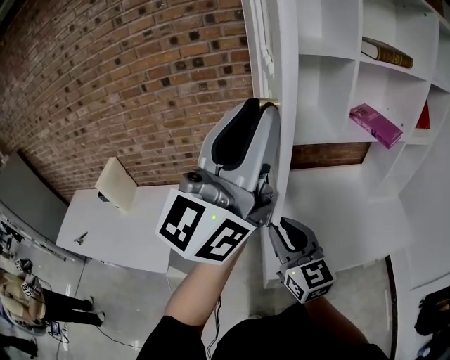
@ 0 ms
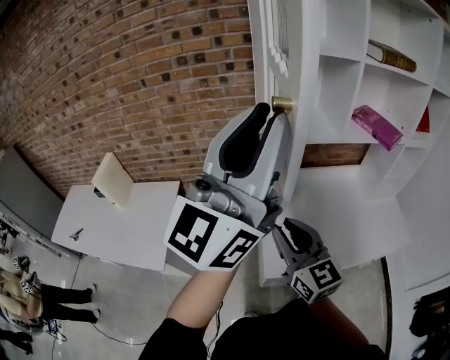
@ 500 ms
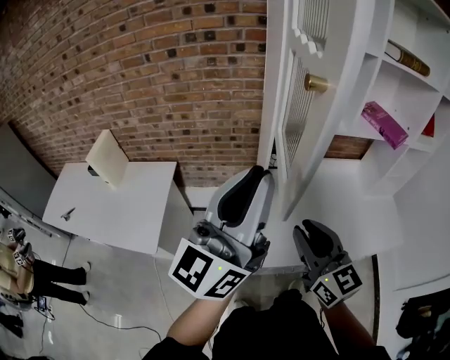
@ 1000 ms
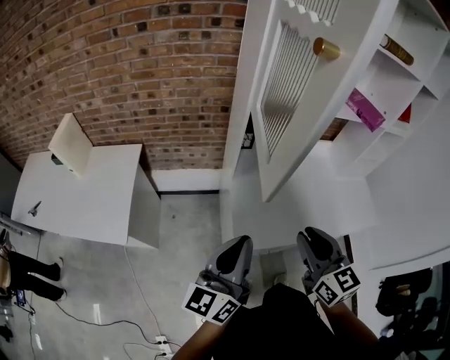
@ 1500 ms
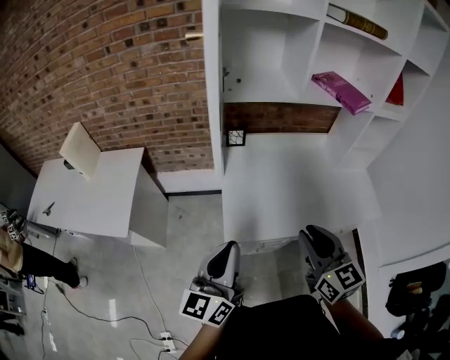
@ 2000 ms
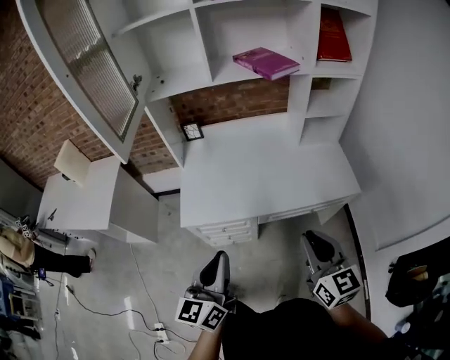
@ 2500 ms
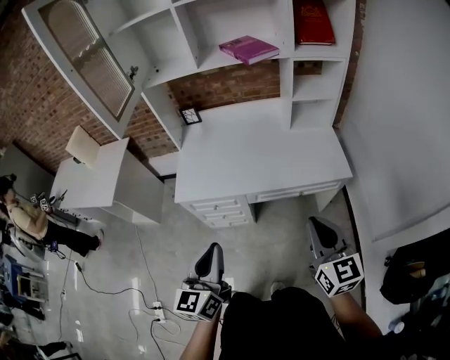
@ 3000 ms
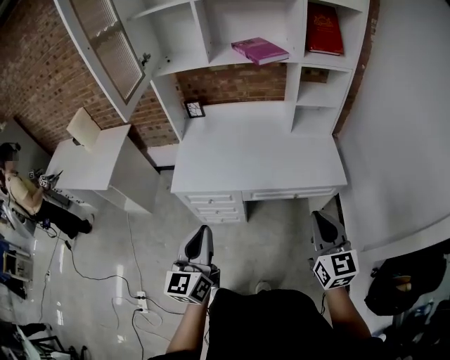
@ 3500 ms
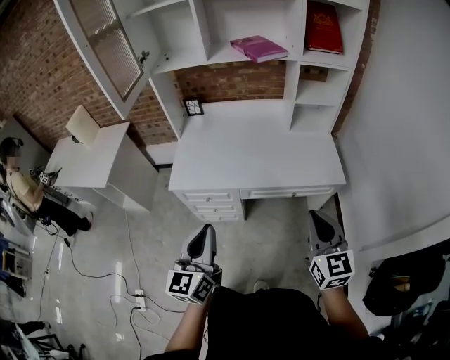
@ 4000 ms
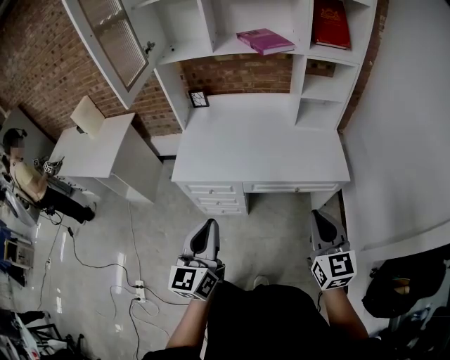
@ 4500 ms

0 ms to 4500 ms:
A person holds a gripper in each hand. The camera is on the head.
0 ms to 2000 ms: The left gripper is displaced downward and backward by about 40 cm, and turns by roughly 40 degrees. Meanwhile the right gripper travels to the right and backward by some 25 cm.
2000 ms to 4500 ms: The two grippers travel together, to the right and backward, about 40 cm.

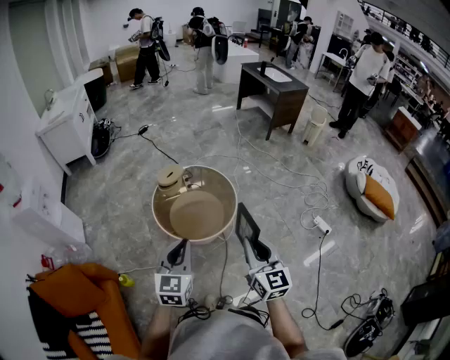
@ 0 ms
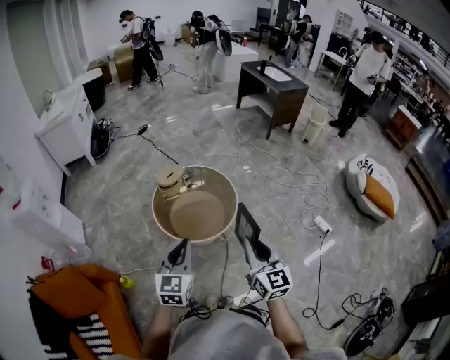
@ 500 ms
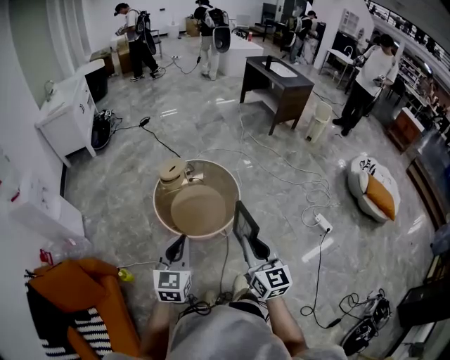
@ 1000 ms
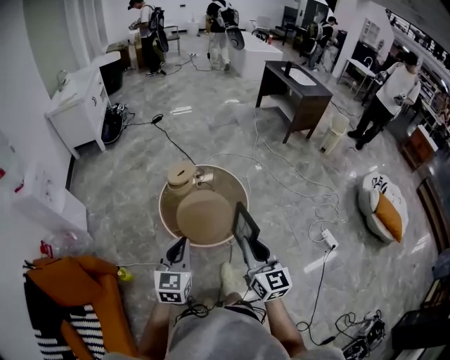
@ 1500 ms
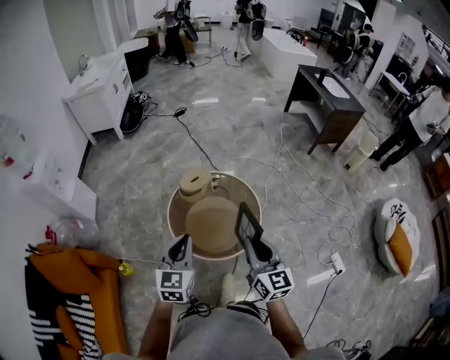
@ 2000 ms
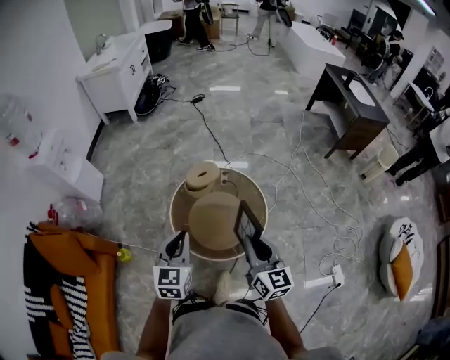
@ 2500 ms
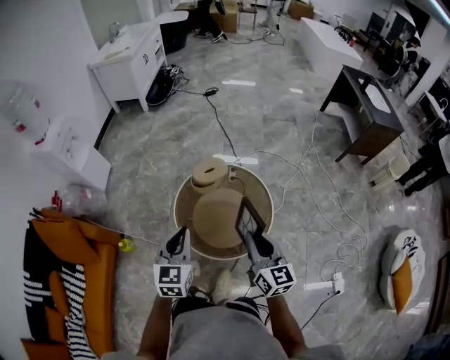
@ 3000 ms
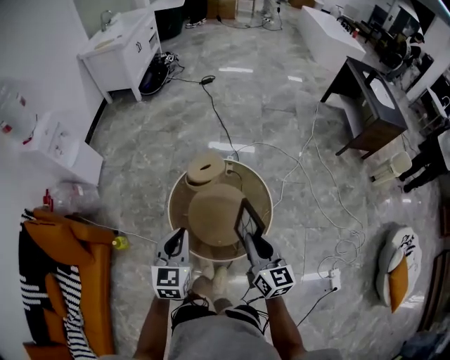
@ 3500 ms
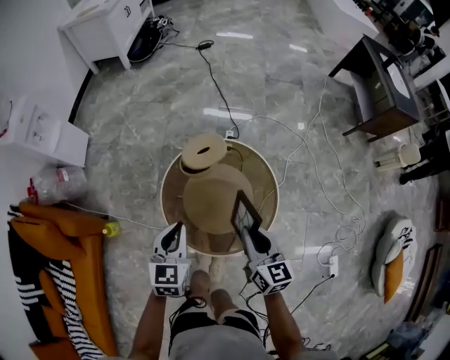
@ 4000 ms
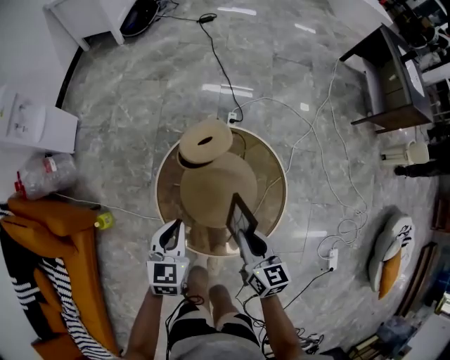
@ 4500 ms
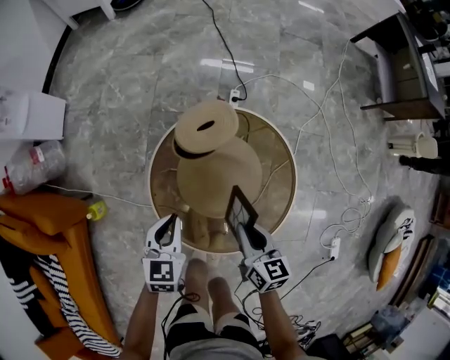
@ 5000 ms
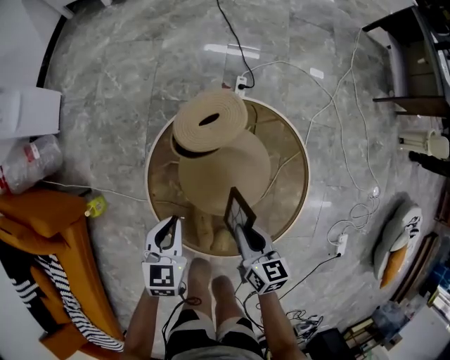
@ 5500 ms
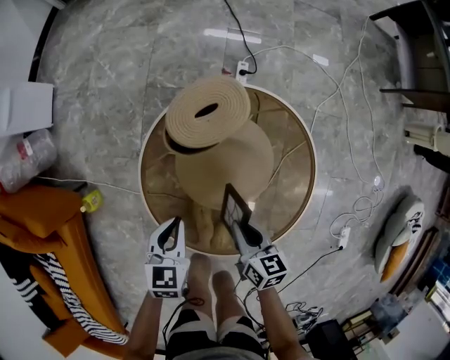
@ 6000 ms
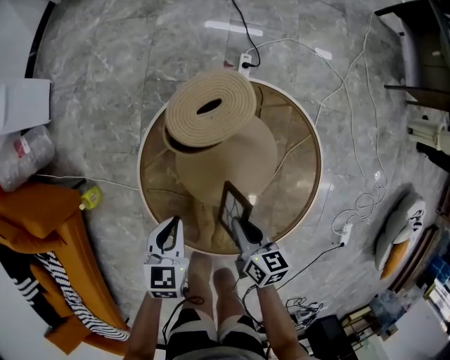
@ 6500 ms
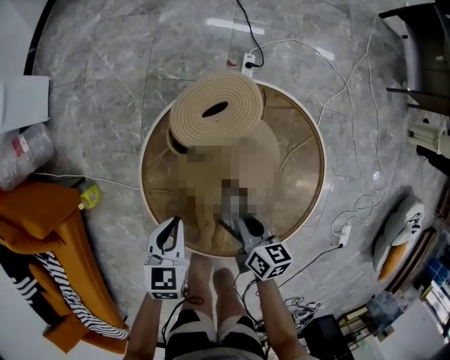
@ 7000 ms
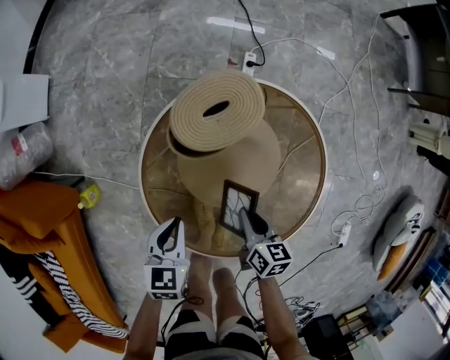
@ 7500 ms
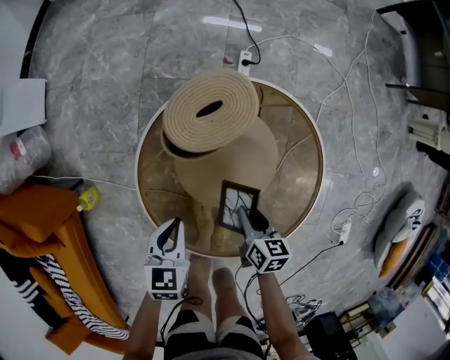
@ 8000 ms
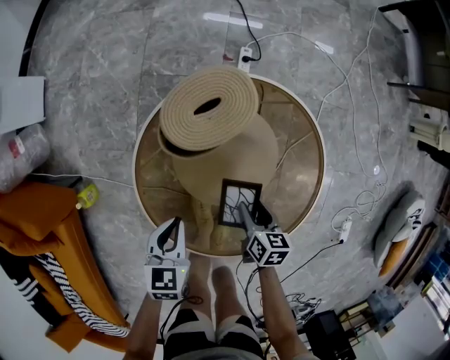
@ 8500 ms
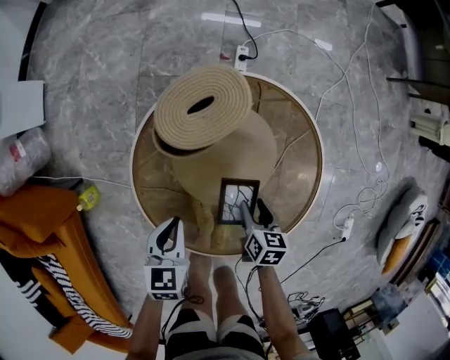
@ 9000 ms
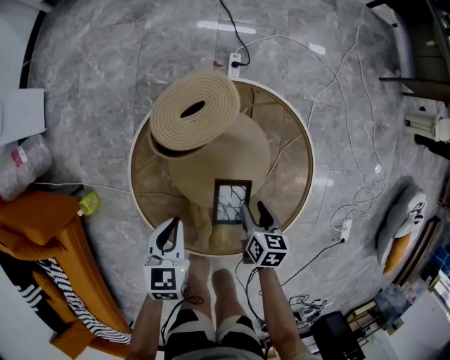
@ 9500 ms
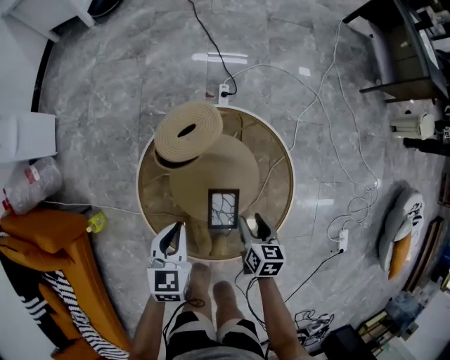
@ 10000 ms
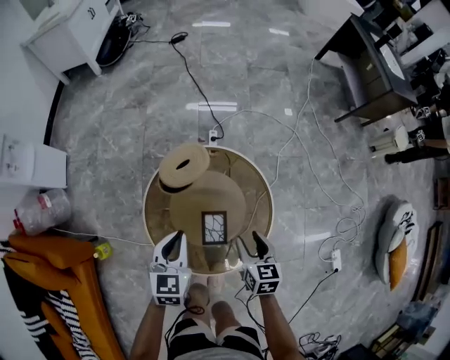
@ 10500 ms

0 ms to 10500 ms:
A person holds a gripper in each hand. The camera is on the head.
0 ms to 2000 ms: The grippers both shift forward by approximately 25 cm.
2000 ms to 4000 ms: The two grippers go approximately 30 cm forward and downward. The right gripper turns by some 20 degrees.
4000 ms to 6500 ms: The grippers both shift downward by roughly 35 cm. The right gripper swivels about 30 degrees; the left gripper turns by some 20 degrees.
6500 ms to 8500 ms: The right gripper moves downward and to the right, approximately 10 cm, and opens its fingers.
8500 ms to 10500 ms: The grippers both shift upward by roughly 25 cm. The left gripper turns by some 20 degrees; the right gripper turns by roughly 20 degrees.

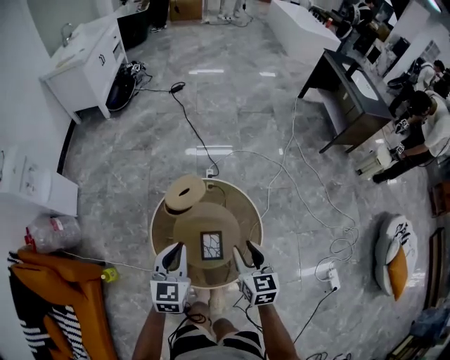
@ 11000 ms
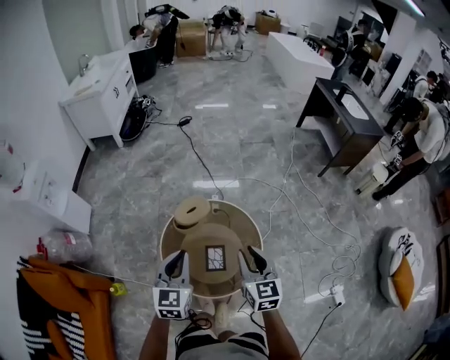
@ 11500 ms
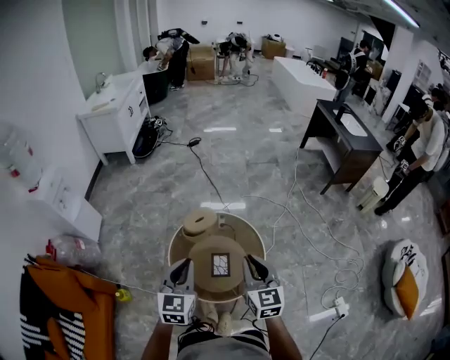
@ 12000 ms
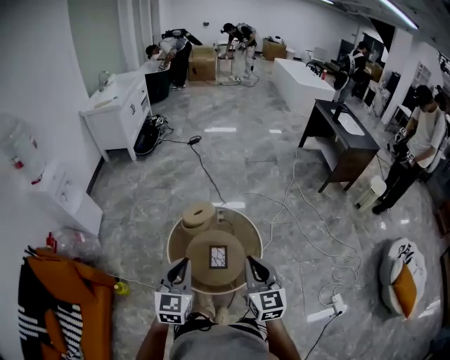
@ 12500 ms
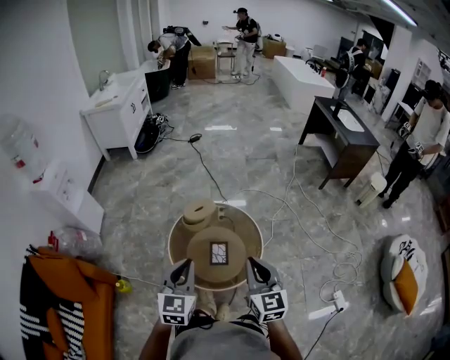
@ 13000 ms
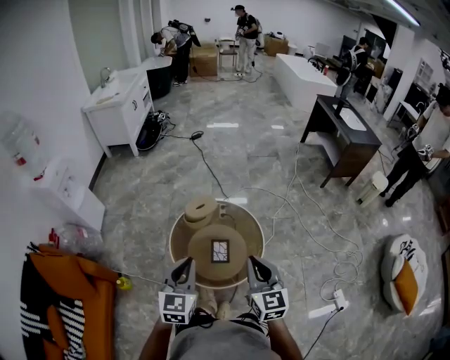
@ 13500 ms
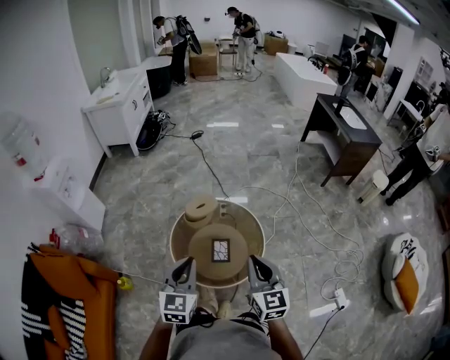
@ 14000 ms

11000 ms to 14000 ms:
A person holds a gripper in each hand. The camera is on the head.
11000 ms to 12500 ms: The left gripper moves backward and upward, about 25 cm. Meanwhile the right gripper heads upward and backward, covering some 30 cm, turns by about 20 degrees, and closes.
12500 ms to 14000 ms: The grippers move only a little.

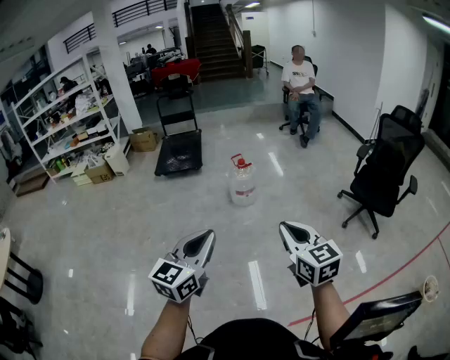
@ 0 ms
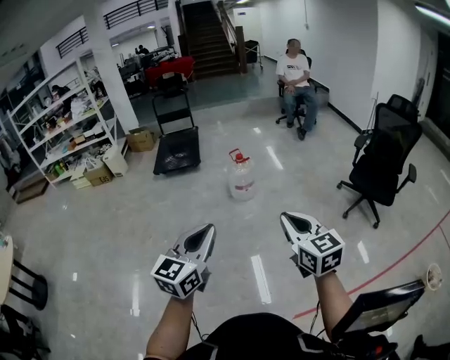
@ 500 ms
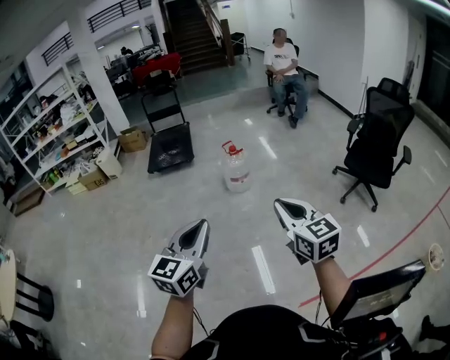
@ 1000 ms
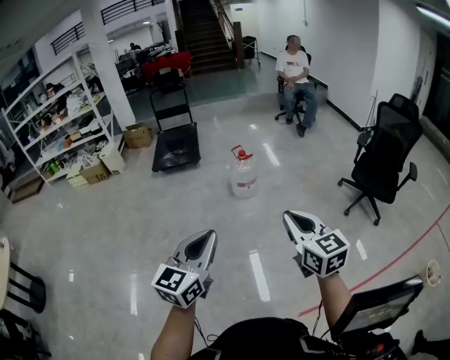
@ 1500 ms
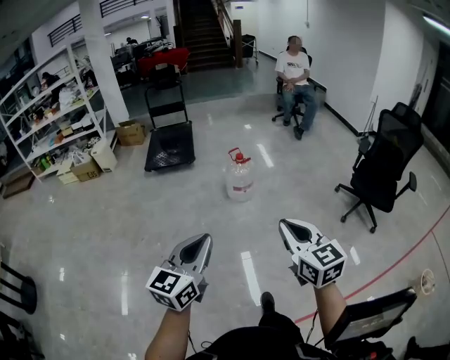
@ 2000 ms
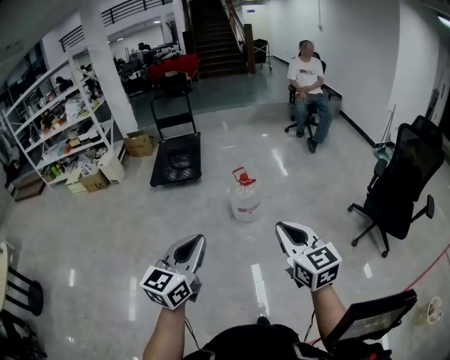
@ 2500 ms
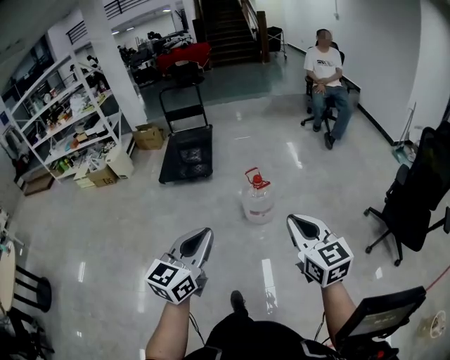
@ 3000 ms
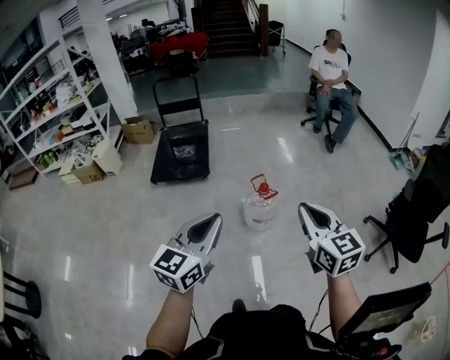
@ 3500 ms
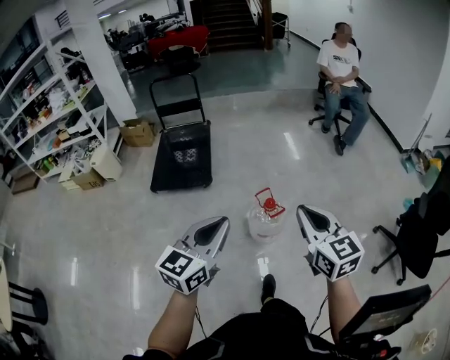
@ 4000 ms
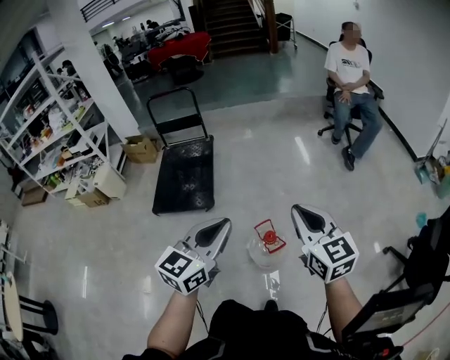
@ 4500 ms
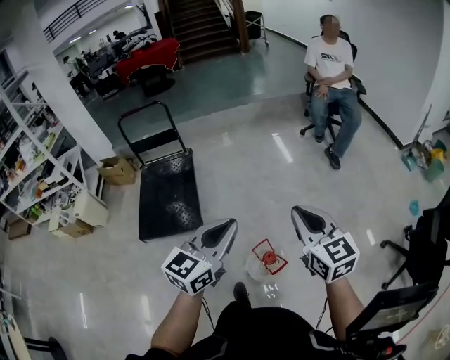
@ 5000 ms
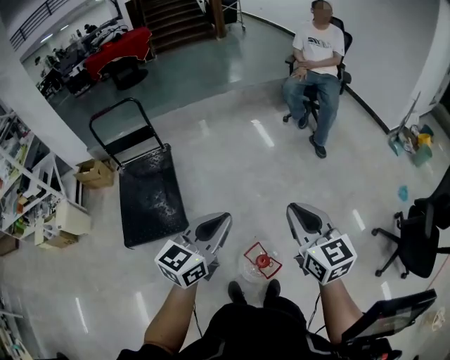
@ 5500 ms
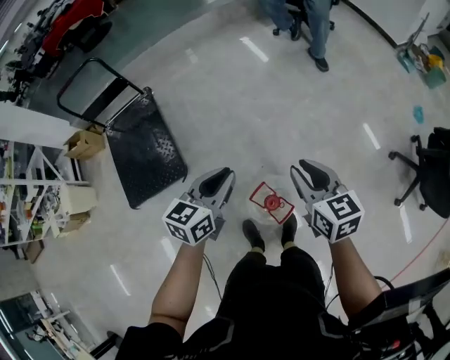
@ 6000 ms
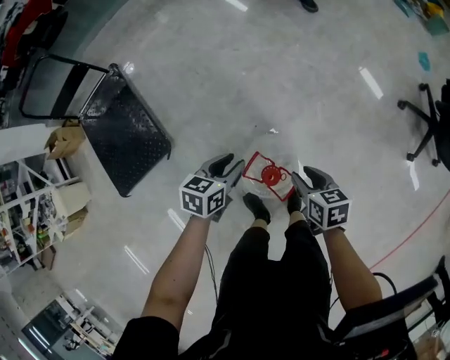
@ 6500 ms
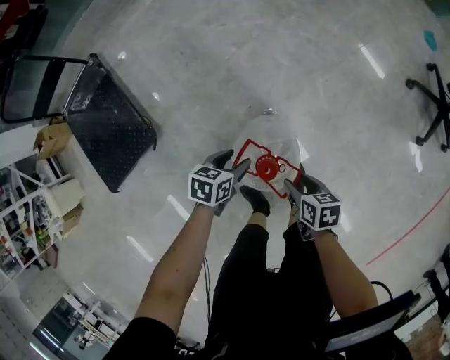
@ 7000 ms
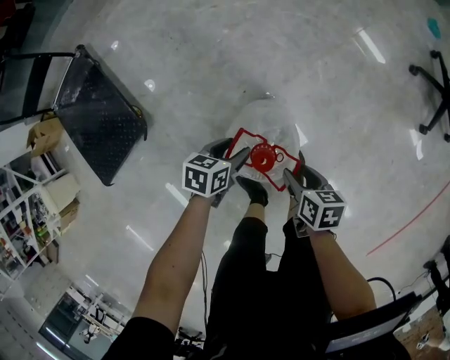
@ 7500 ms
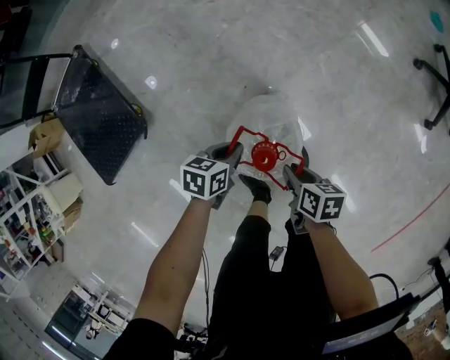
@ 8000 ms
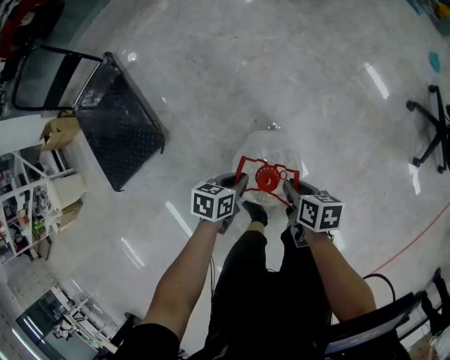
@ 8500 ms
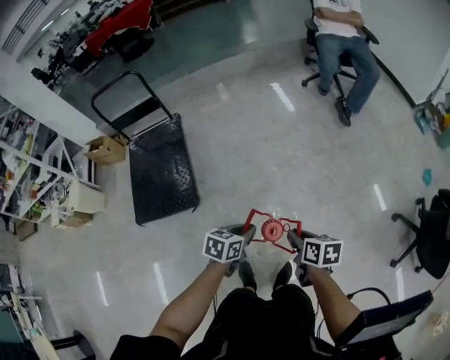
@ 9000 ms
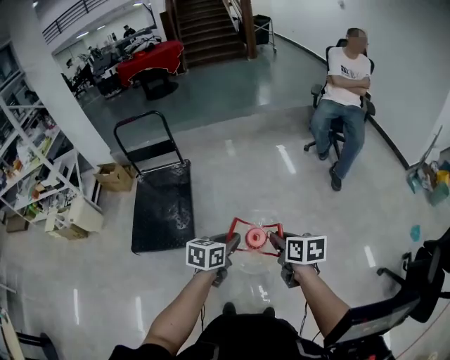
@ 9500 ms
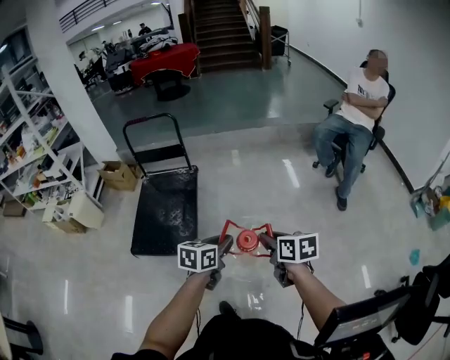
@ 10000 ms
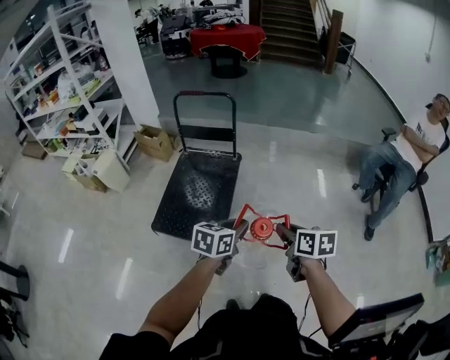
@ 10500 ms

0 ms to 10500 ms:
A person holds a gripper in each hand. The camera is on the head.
0 ms to 2000 ms: The two grippers go about 10 cm to the left and forward.
2000 ms to 4000 ms: The pair of grippers is taken forward, about 60 cm.
4000 ms to 6500 ms: The left gripper ends up roughly 70 cm from where it was, tips its fingers downward by approximately 40 degrees, and opens its fingers. Meanwhile the right gripper heads downward, covering approximately 50 cm, angles its fingers downward, by approximately 40 degrees, and opens.
6500 ms to 8500 ms: The right gripper heads downward, covering some 10 cm, while the left gripper heads downward and backward, covering roughly 15 cm.
8500 ms to 10500 ms: Both grippers travel together upward, roughly 40 cm. The right gripper twists some 40 degrees counterclockwise, seen from behind. The left gripper turns by some 50 degrees.
